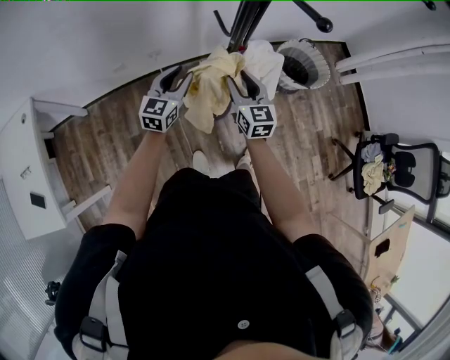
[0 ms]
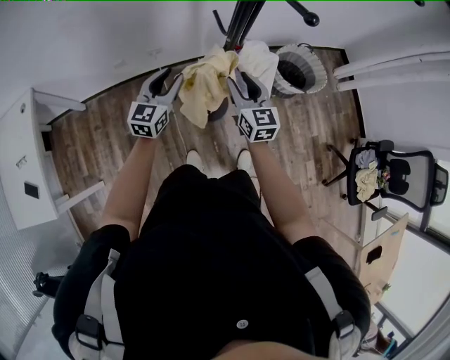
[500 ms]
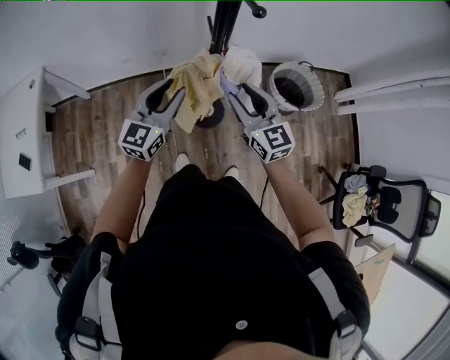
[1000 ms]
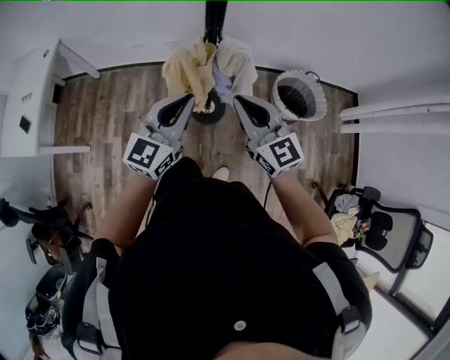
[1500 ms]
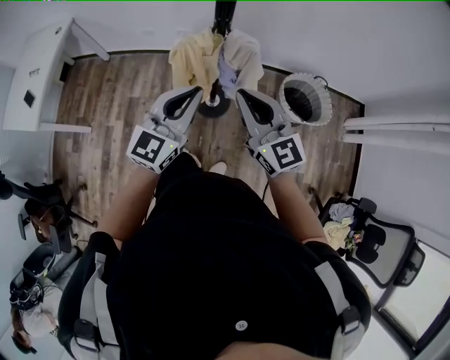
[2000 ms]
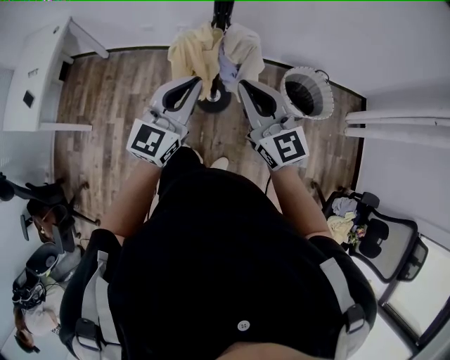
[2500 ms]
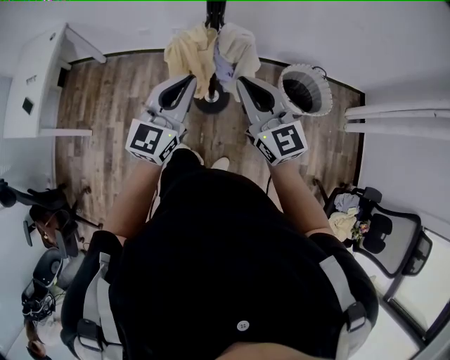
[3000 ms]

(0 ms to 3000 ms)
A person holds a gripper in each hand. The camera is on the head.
0 ms - 1500 ms: The right gripper shifts by approximately 25 cm, and changes its angle by about 40 degrees. Meanwhile the left gripper shifts by about 35 cm.
1500 ms - 3000 ms: The grippers stay close to where they were, moving slightly.

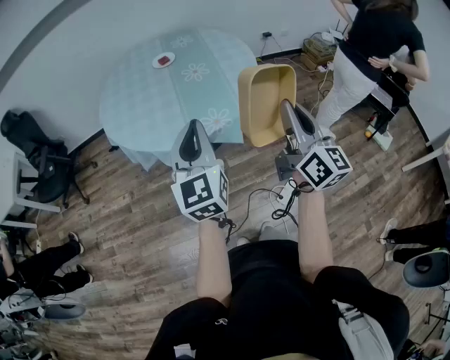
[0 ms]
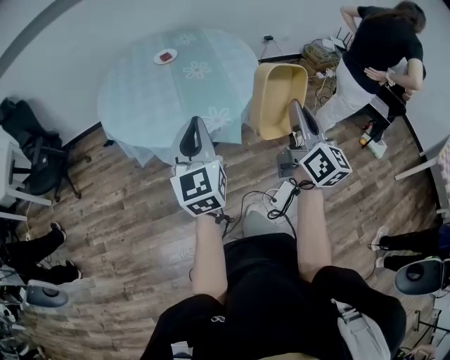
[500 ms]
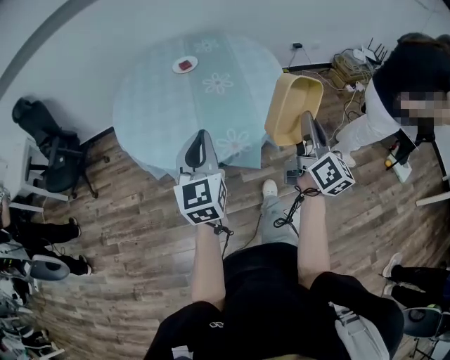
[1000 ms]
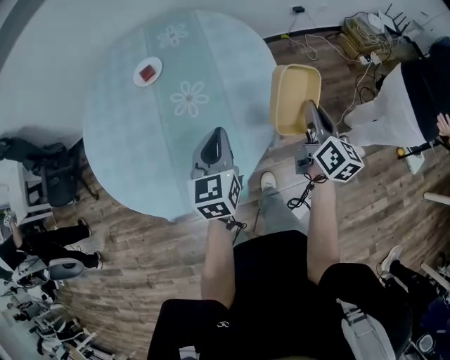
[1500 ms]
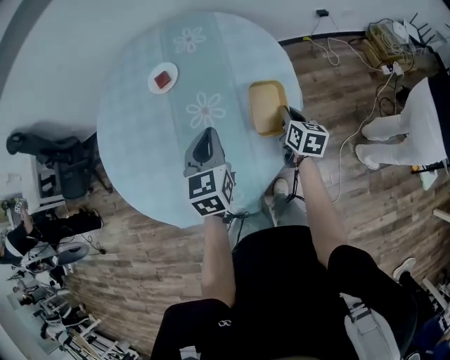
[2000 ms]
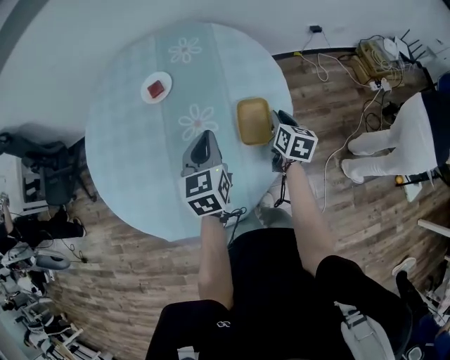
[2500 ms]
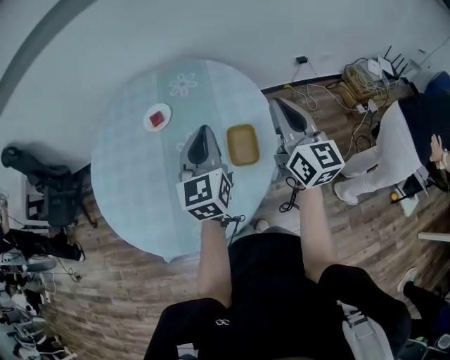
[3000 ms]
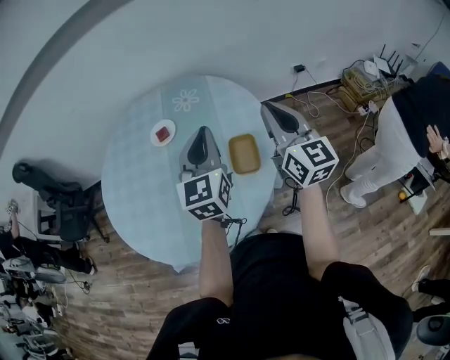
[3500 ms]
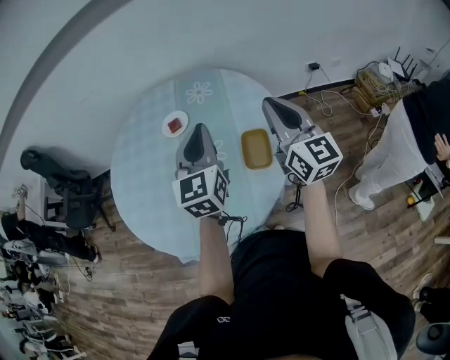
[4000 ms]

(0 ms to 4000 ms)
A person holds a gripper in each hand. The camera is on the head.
0 ms - 2000 ms: The pair of grippers is taken forward, some 60 cm. The right gripper shifts approximately 35 cm downward, and tilts its fingers approximately 50 degrees downward; the left gripper rotates approximately 30 degrees.
2000 ms - 4000 ms: The left gripper moves upward, some 15 cm, and changes its angle by some 20 degrees. Meanwhile the right gripper is displaced upward by roughly 35 cm, and tilts its fingers some 40 degrees upward.

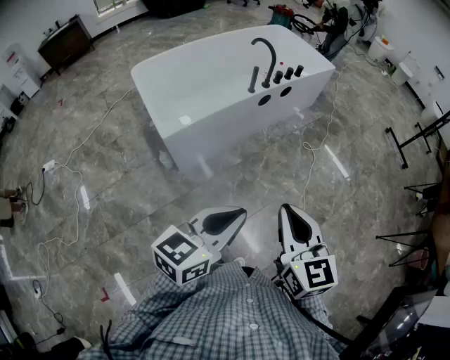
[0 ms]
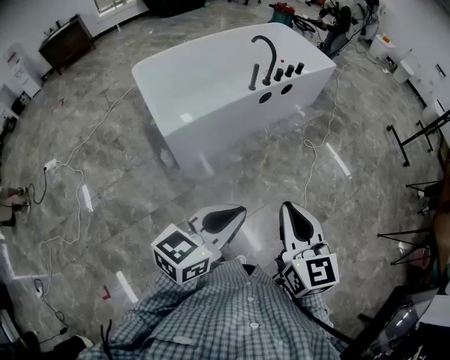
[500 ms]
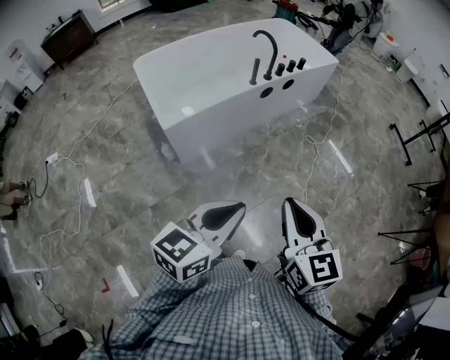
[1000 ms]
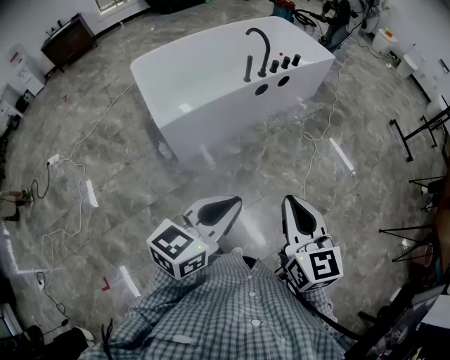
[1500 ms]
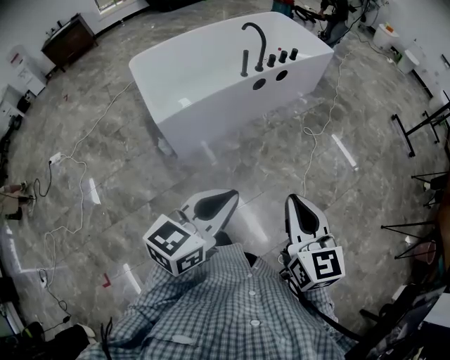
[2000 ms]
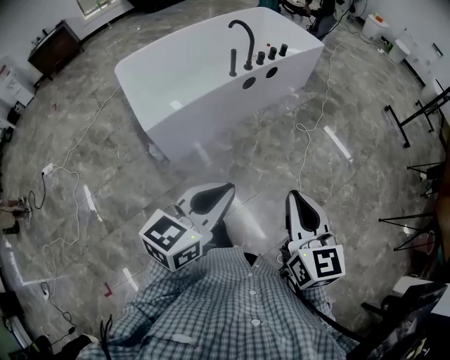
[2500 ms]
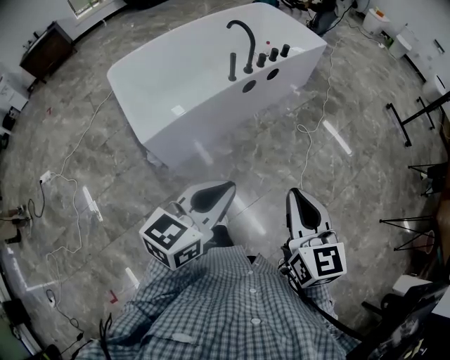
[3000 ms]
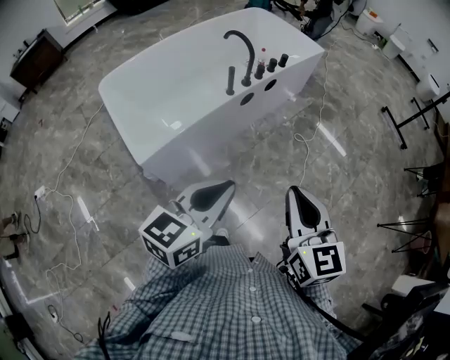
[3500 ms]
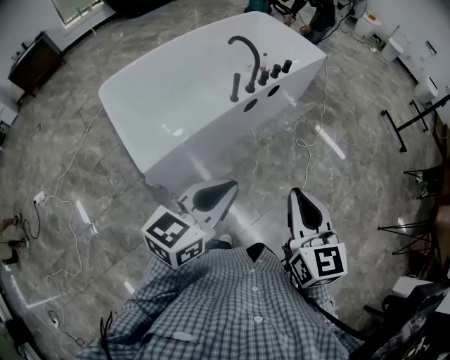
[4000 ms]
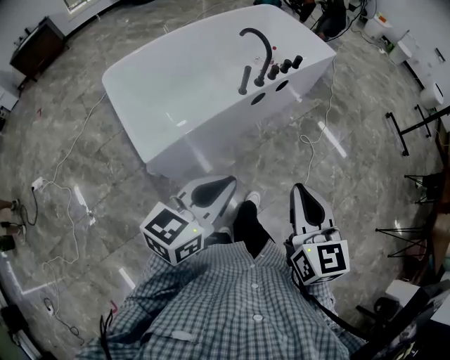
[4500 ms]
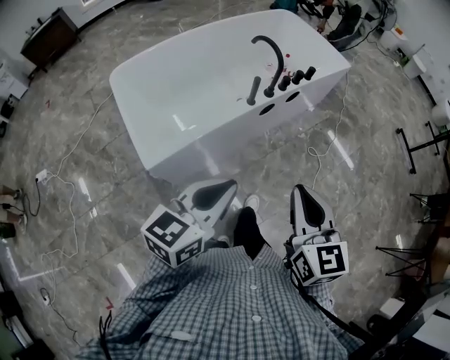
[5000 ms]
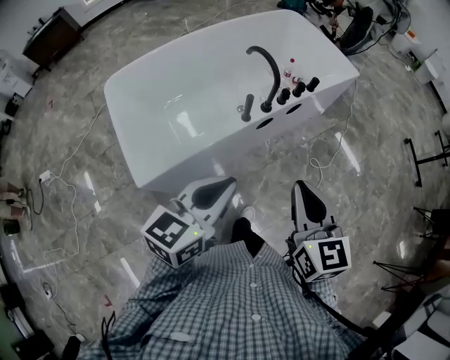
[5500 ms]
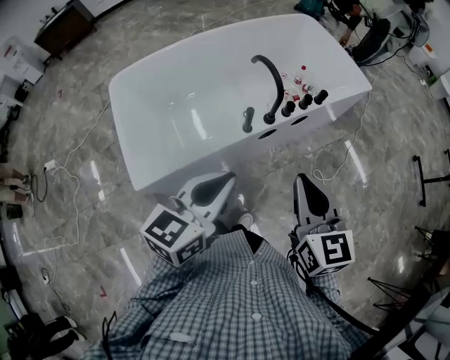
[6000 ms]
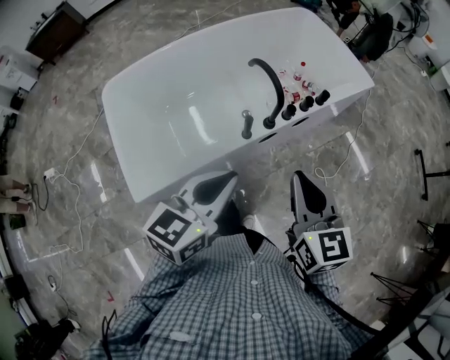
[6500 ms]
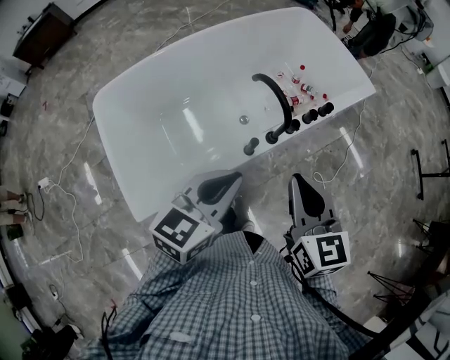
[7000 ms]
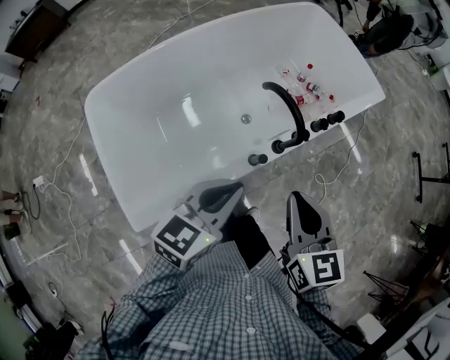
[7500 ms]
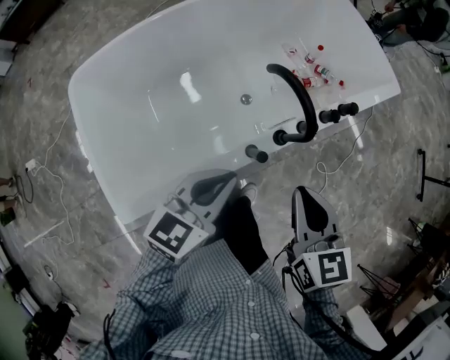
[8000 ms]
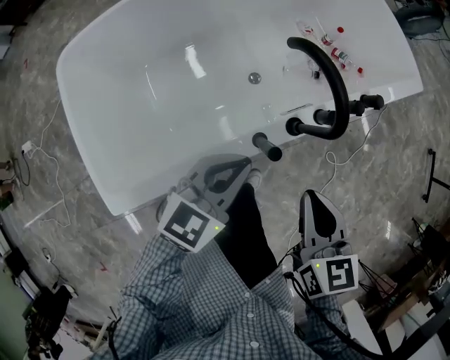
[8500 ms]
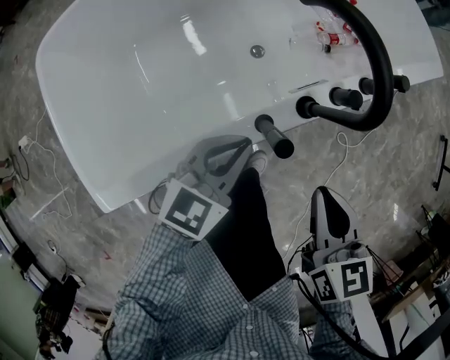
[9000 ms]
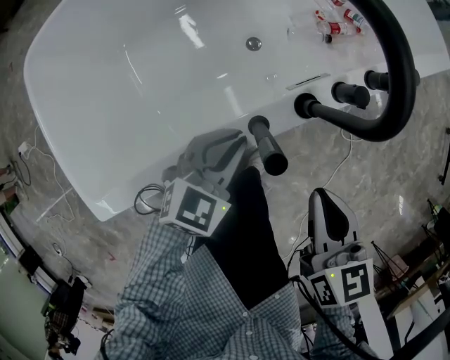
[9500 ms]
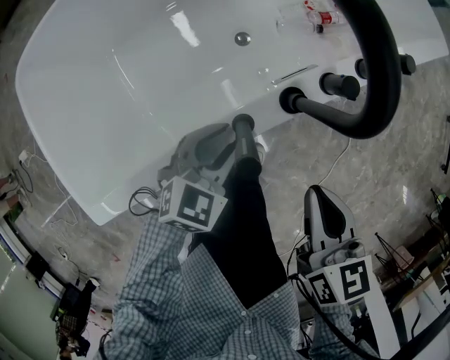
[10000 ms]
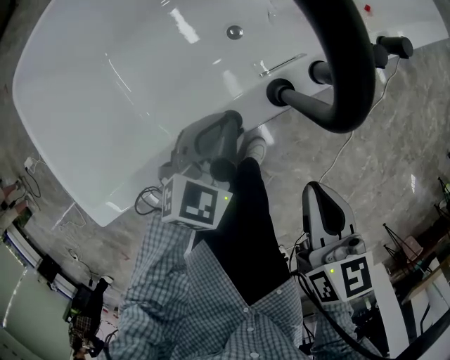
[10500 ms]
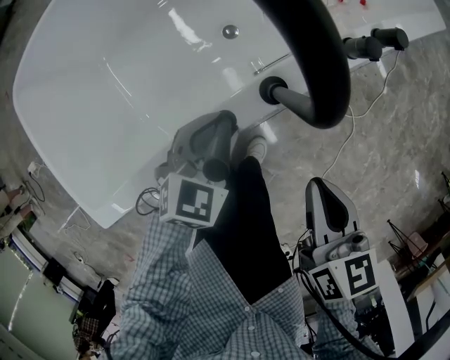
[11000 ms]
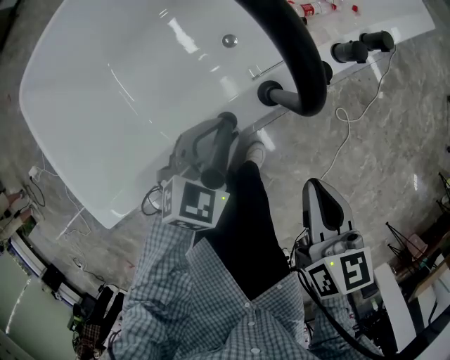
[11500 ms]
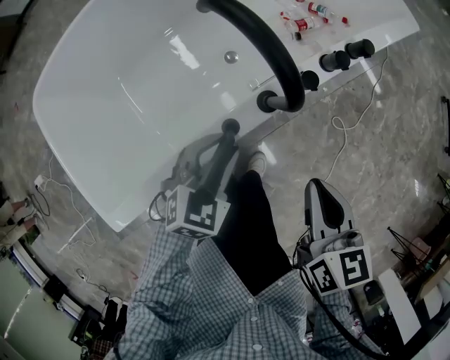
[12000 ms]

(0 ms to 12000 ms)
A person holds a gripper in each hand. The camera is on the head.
0 ms - 2000 ms: Both grippers travel together to the right, about 10 cm.
2000 ms - 4000 ms: Both grippers travel together forward and to the left, about 30 cm.
4000 ms - 6000 ms: Both grippers move forward, approximately 35 cm.
6000 ms - 8000 ms: The left gripper travels forward and downward by some 30 cm. Meanwhile the right gripper shifts some 30 cm forward, downward and to the left.
8000 ms - 10000 ms: The grippers both shift downward by roughly 25 cm. The left gripper turns by about 30 degrees, and opens its fingers.
10000 ms - 12000 ms: The grippers both shift upward by approximately 5 cm.

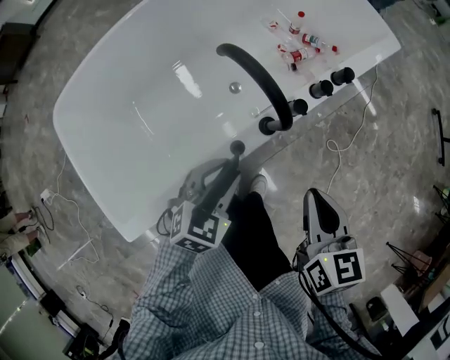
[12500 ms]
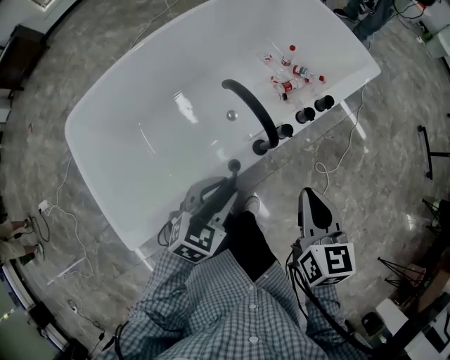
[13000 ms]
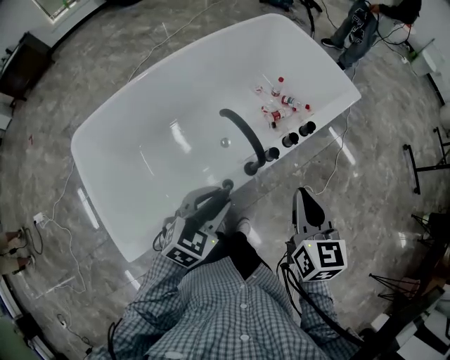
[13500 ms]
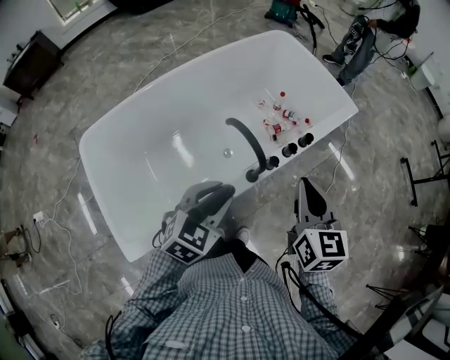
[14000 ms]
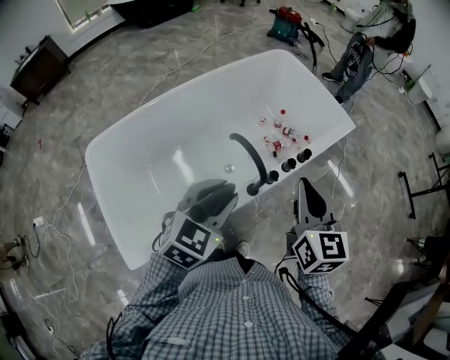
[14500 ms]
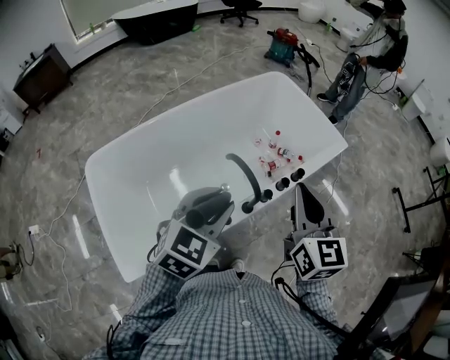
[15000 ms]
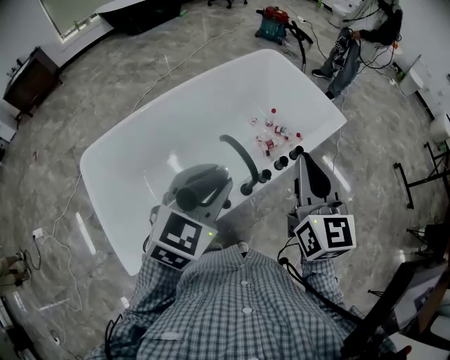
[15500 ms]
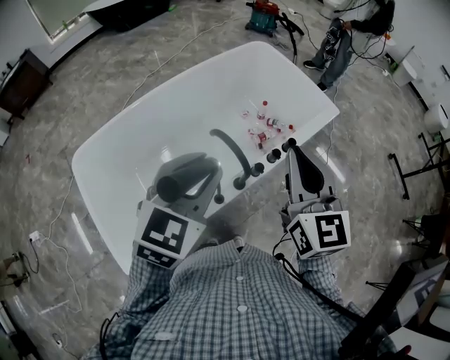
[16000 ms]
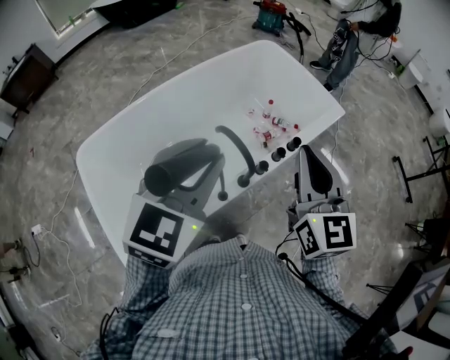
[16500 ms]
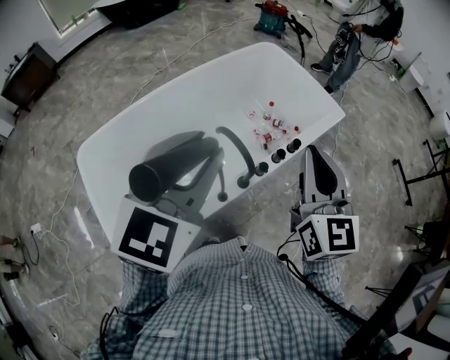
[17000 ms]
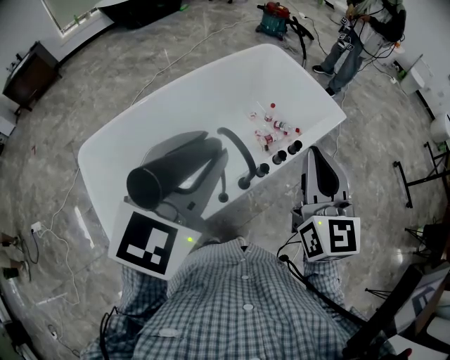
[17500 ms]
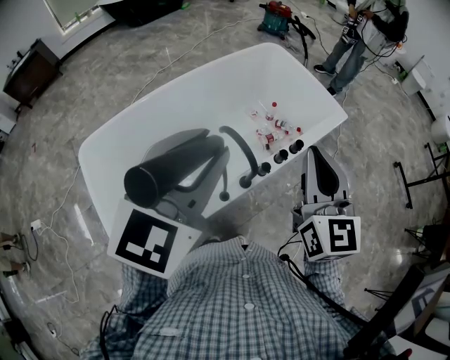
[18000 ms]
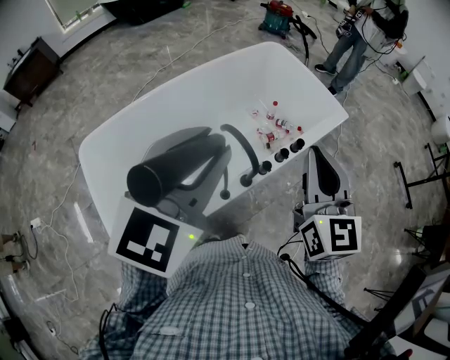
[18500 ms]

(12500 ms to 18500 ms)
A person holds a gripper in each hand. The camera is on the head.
12500 ms - 14500 ms: Both grippers move upward, approximately 25 cm. The right gripper changes its angle by roughly 30 degrees.
14500 ms - 16500 ms: The left gripper goes approximately 10 cm upward; the right gripper is displaced upward by about 5 cm.
16500 ms - 18500 ms: The grippers stay close to where they were, moving slightly.

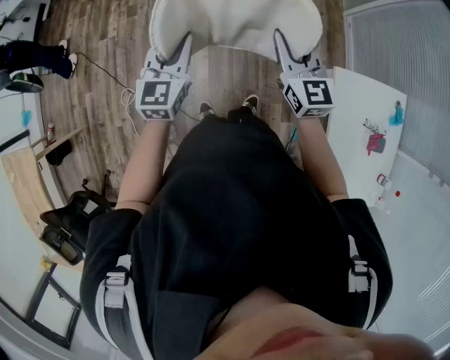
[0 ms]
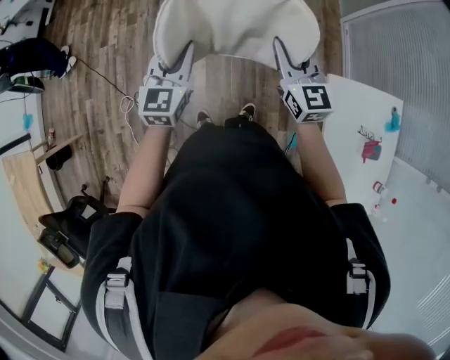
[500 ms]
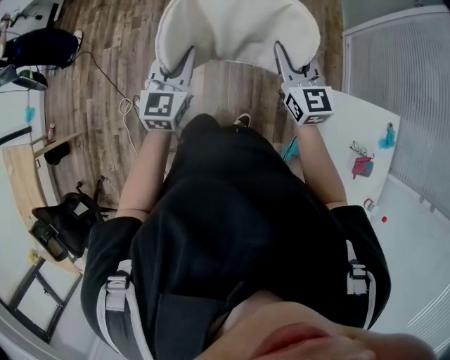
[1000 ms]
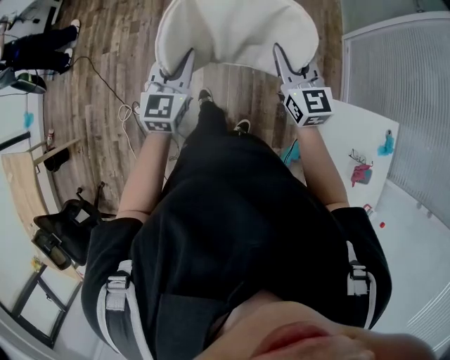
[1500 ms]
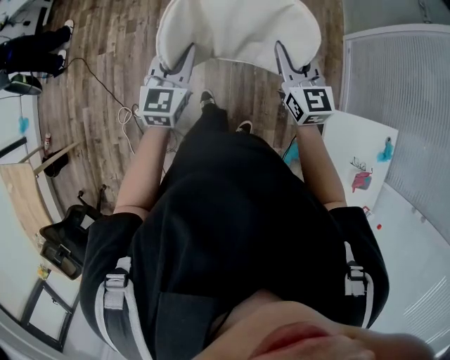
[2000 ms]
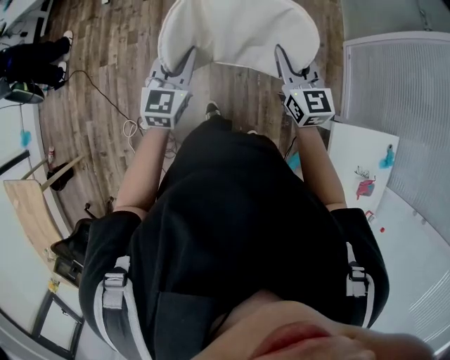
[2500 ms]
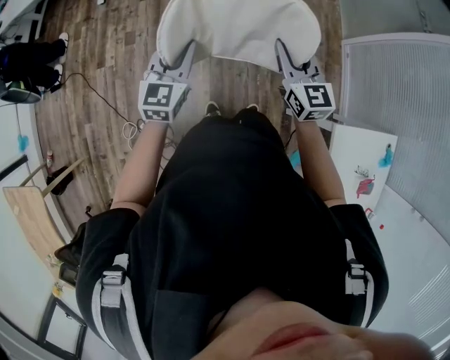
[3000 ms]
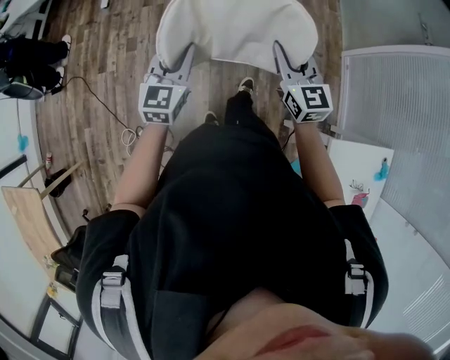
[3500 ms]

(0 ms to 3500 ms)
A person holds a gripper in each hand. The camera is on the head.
0 ms - 2000 ms: The two grippers go some 15 cm forward.
2000 ms - 3500 ms: The grippers both shift forward and to the left by some 15 cm.
